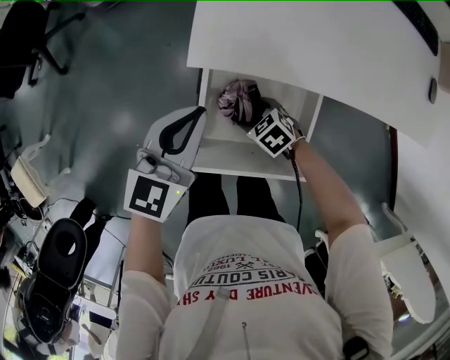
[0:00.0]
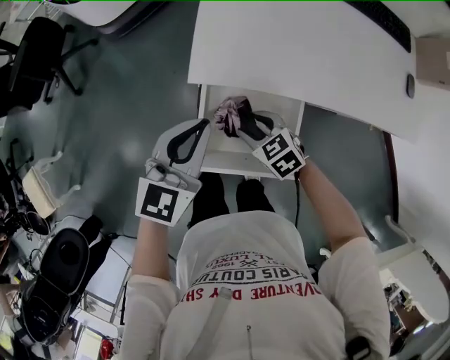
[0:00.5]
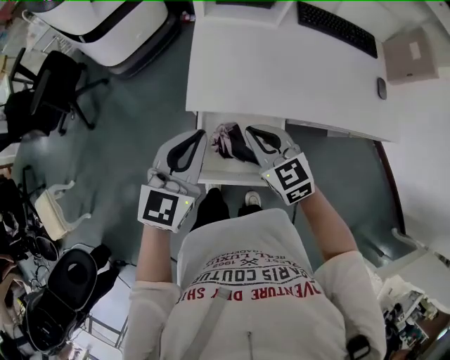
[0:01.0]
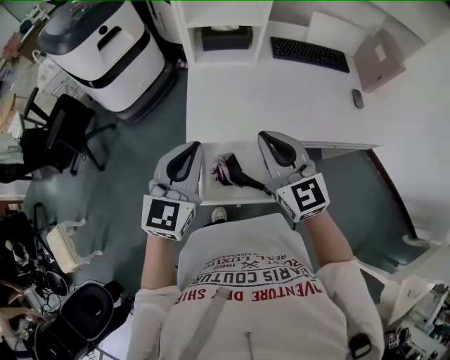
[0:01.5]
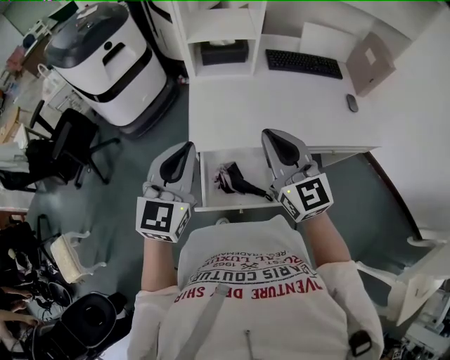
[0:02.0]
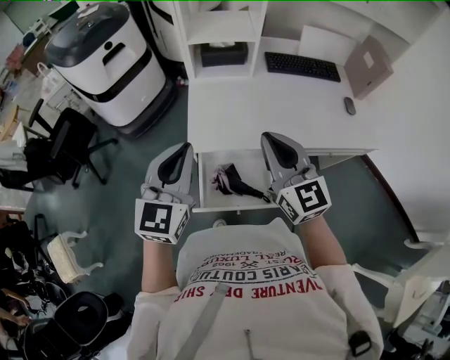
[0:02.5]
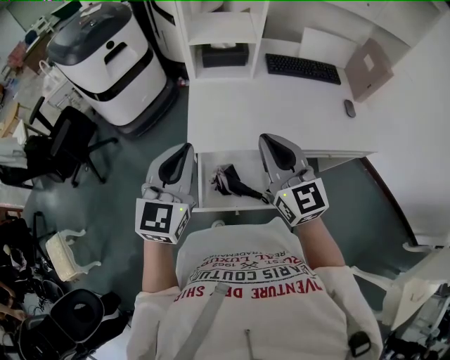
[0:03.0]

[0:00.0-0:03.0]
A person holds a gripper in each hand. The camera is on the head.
0:00.0 to 0:01.5: The left gripper shifts about 25 cm upward; the right gripper is displaced upward by some 50 cm, angles its fingers upward, by roughly 60 degrees, and closes.
0:01.5 to 0:03.0: The left gripper moves some 5 cm.

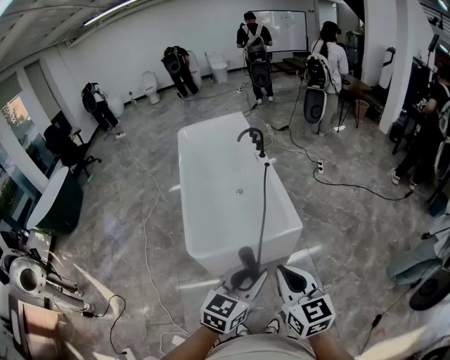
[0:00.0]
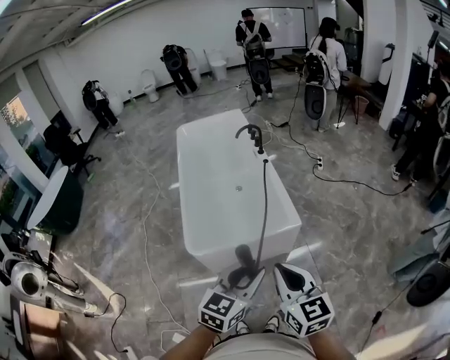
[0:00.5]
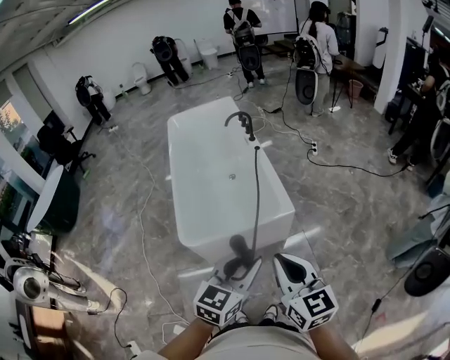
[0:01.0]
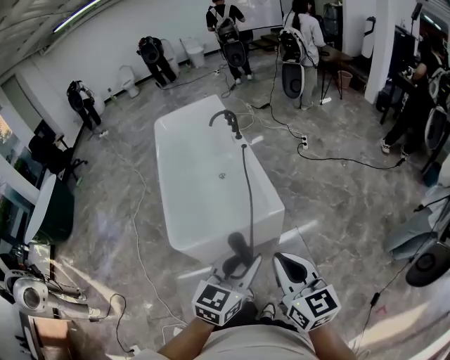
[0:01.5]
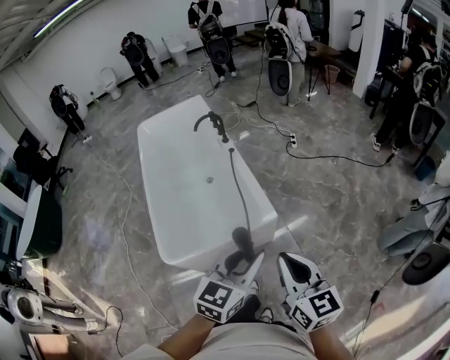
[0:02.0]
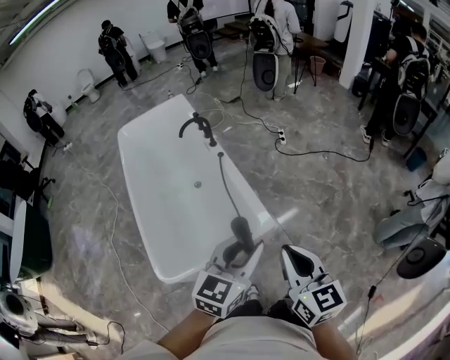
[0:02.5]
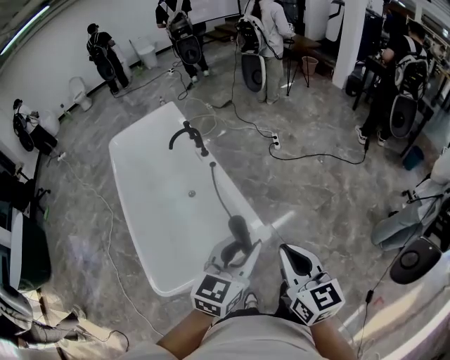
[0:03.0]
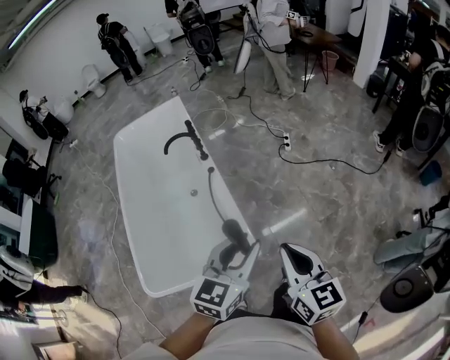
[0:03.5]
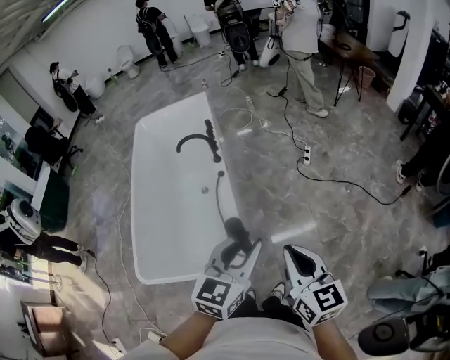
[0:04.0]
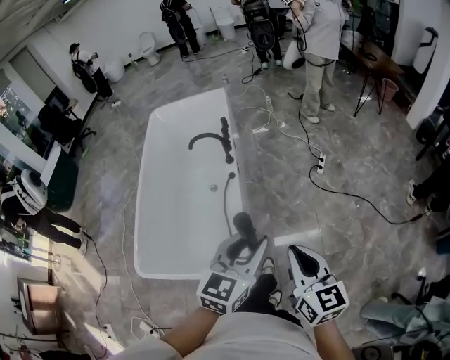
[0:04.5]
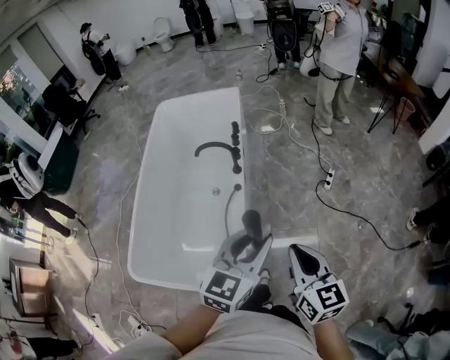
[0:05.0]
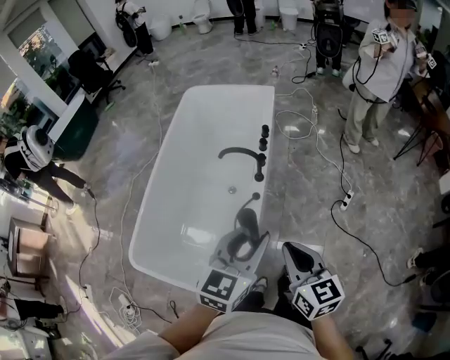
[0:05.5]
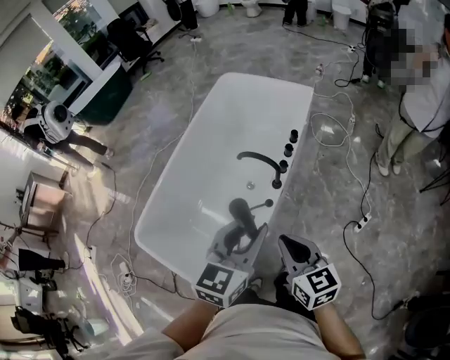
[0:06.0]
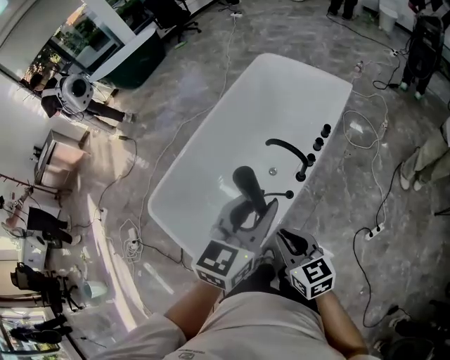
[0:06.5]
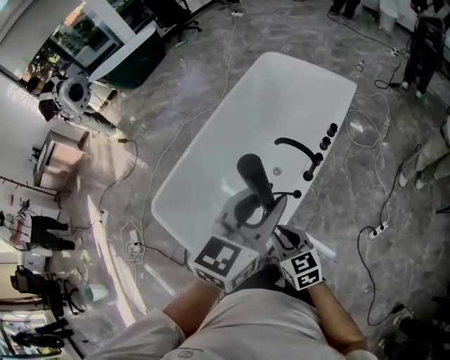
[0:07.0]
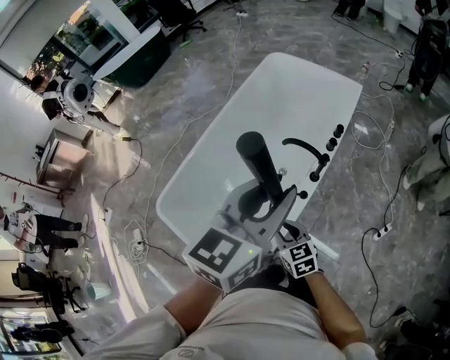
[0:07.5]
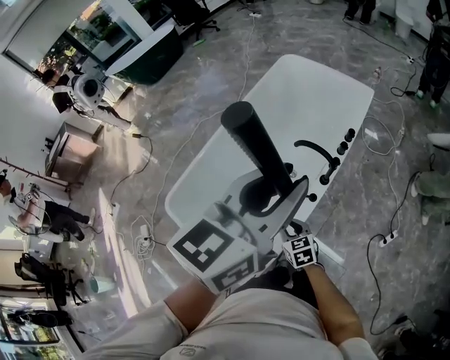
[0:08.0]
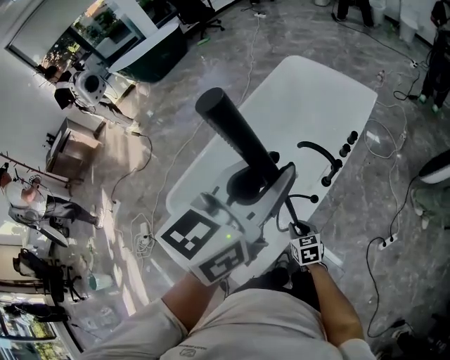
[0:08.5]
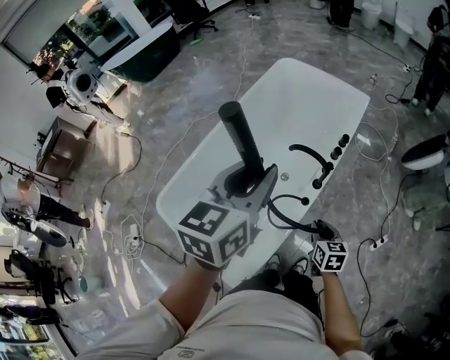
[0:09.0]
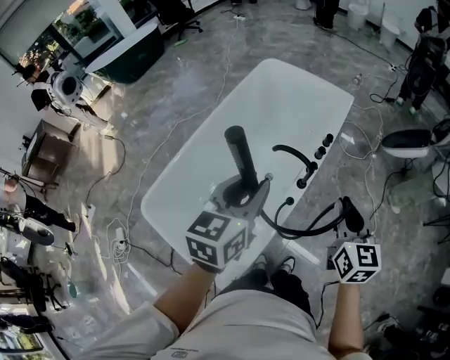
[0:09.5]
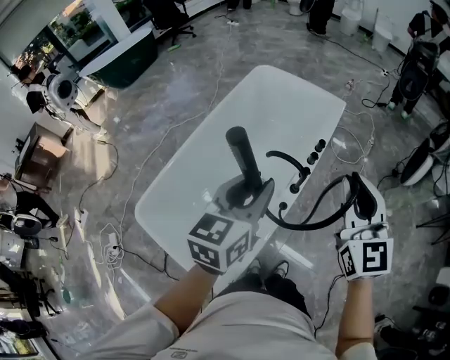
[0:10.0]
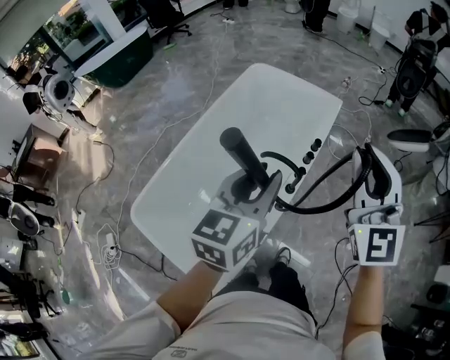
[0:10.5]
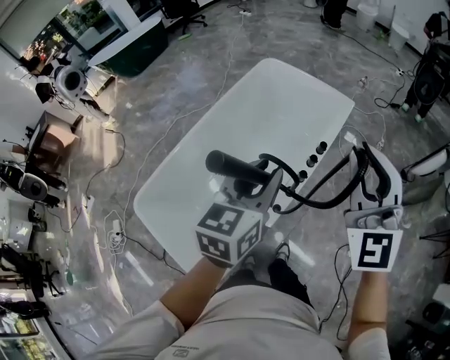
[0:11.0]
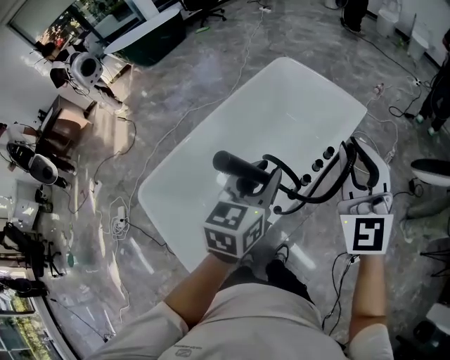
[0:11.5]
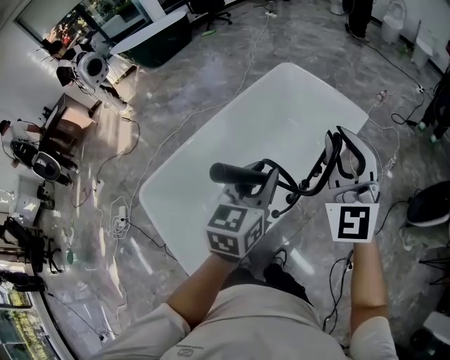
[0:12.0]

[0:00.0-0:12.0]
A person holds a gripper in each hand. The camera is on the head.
0:00.0 to 0:02.0: The left gripper moves forward and to the right, approximately 15 cm, while the right gripper is displaced to the right and forward by some 15 cm.
0:02.0 to 0:04.0: The grippers both shift forward by some 35 cm.
0:04.0 to 0:06.0: The left gripper ends up about 35 cm from where it was, and turns by some 40 degrees. The right gripper shifts by roughly 40 cm, and changes its angle by approximately 50 degrees.
0:06.0 to 0:08.0: The right gripper shifts some 30 cm downward and to the left, and turns by some 20 degrees. Meanwhile the left gripper travels upward, to the left and forward by some 15 cm.
0:08.0 to 0:10.0: The left gripper heads downward, covering about 10 cm. Meanwhile the right gripper travels upward and to the right by about 40 cm, and points its fingers some 40 degrees further upward.
0:10.0 to 0:12.0: The left gripper goes some 15 cm forward and to the right. Meanwhile the right gripper goes about 15 cm forward, and swivels approximately 30 degrees.

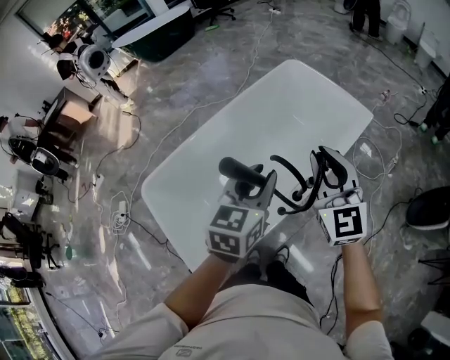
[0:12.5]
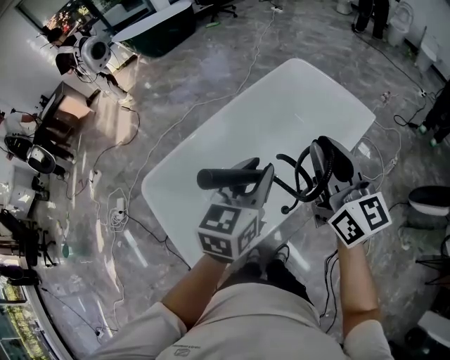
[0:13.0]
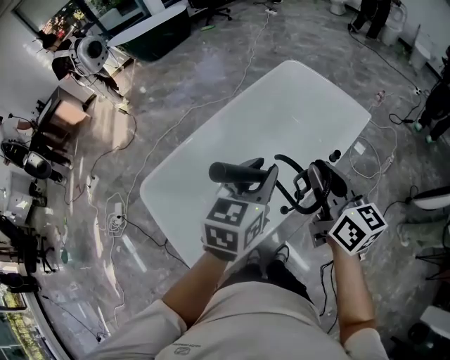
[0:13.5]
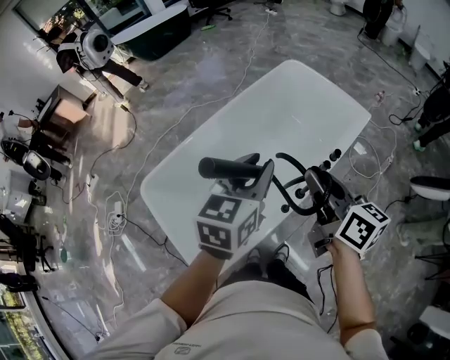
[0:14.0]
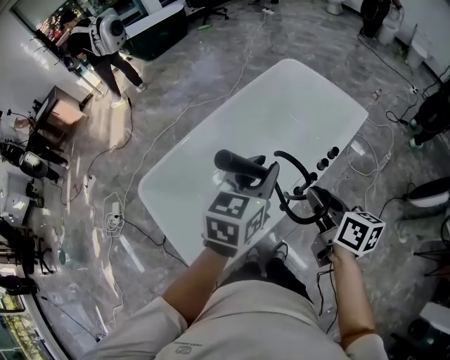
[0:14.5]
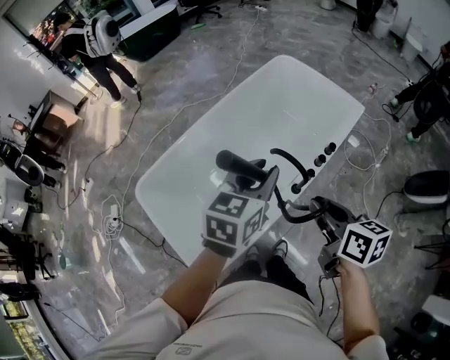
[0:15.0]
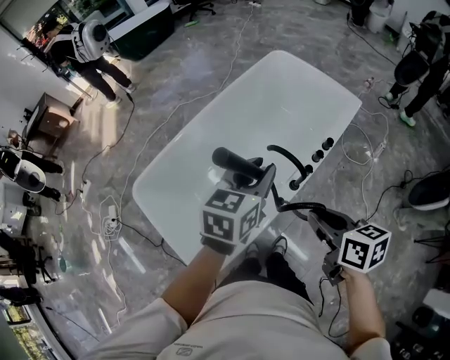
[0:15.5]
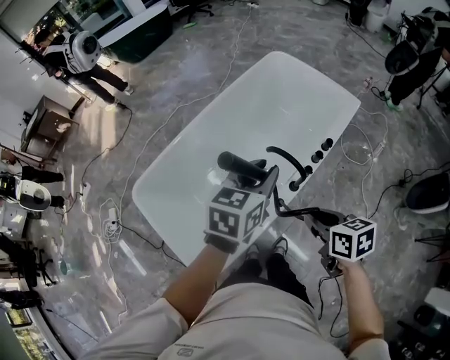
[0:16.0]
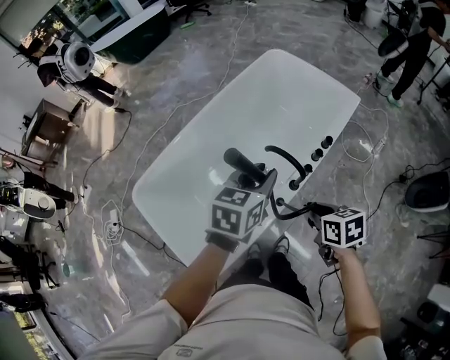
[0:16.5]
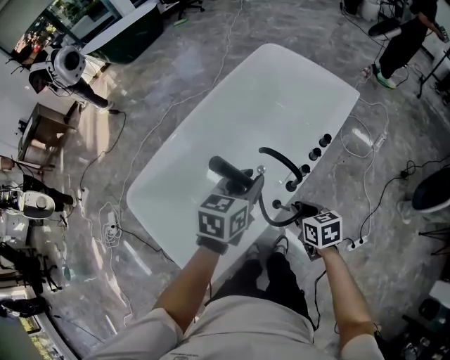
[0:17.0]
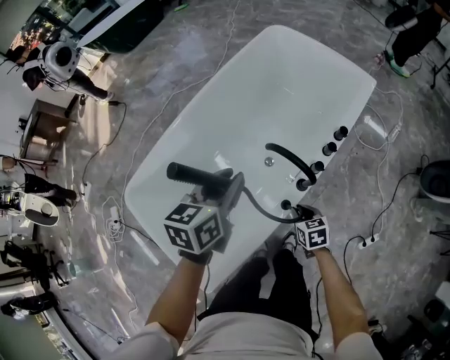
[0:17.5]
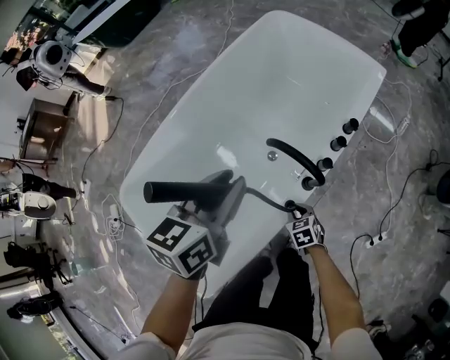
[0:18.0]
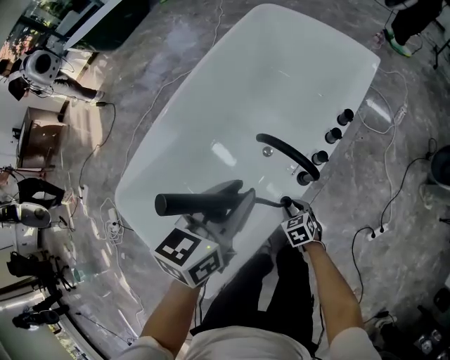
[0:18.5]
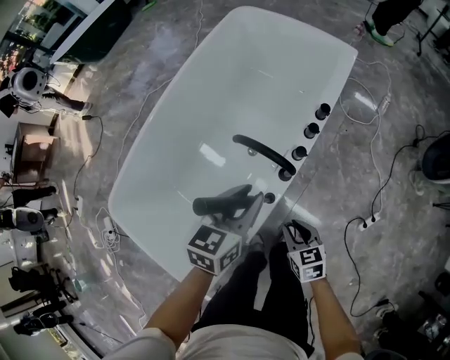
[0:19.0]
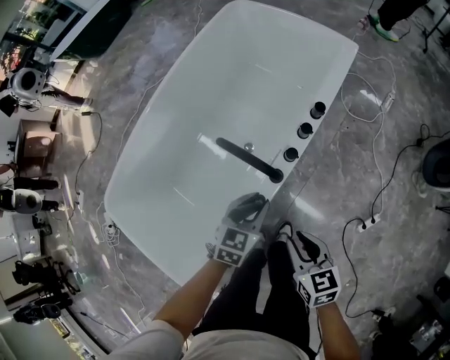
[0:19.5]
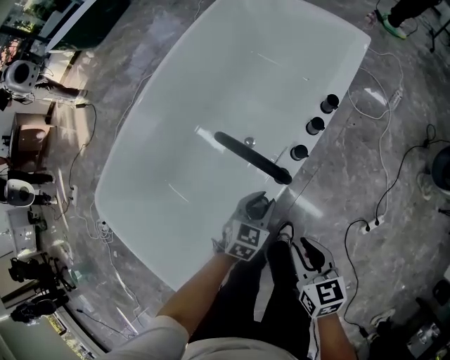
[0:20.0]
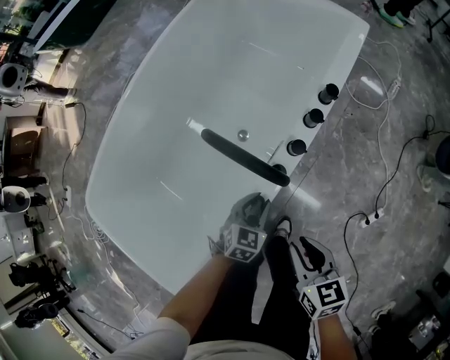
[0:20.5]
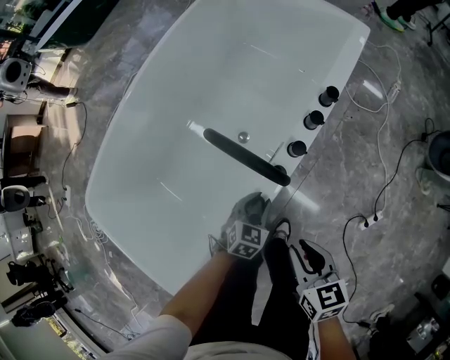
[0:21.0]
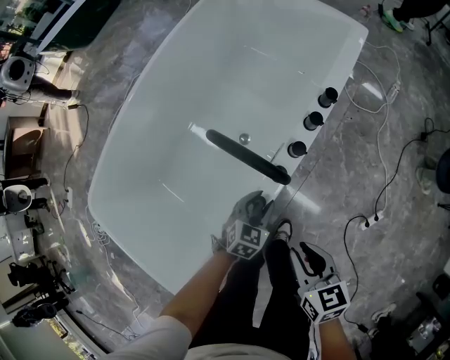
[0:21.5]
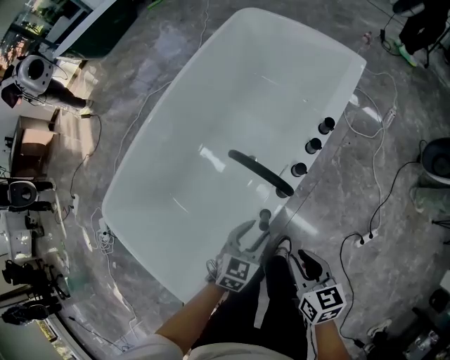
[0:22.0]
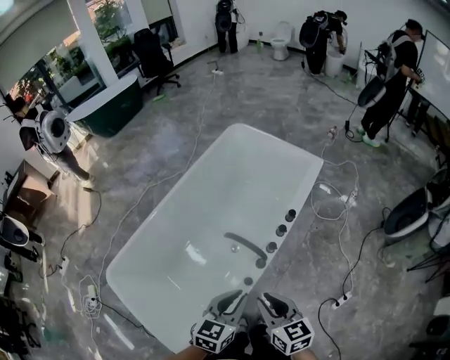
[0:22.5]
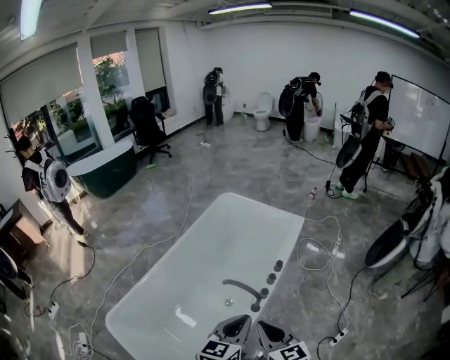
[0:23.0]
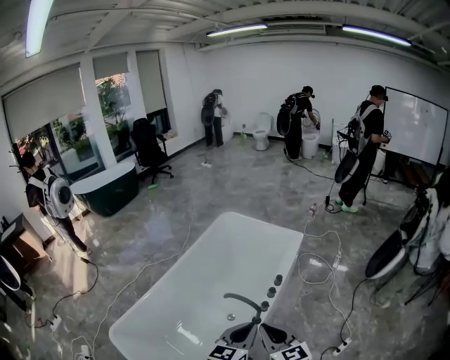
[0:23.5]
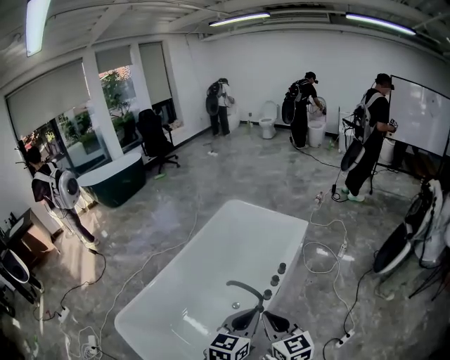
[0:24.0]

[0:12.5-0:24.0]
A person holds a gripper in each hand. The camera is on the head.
0:12.5 to 0:14.5: The right gripper is displaced downward and backward by about 10 cm, and rotates around the line of its fingers by roughly 60 degrees, clockwise from behind.
0:14.5 to 0:16.5: The right gripper moves downward, about 10 cm, and changes its angle by approximately 30 degrees. Meanwhile the left gripper goes approximately 10 cm downward.
0:16.5 to 0:18.5: The right gripper heads downward, covering roughly 35 cm, and swivels roughly 20 degrees; the left gripper goes approximately 10 cm downward.
0:18.5 to 0:20.0: The right gripper is displaced upward and to the right by approximately 20 cm, and swivels some 30 degrees. Meanwhile the left gripper moves downward and to the right, approximately 30 cm, and turns by roughly 30 degrees.
0:20.0 to 0:22.0: The left gripper heads upward, covering about 5 cm.
0:22.0 to 0:24.0: Both grippers travel together upward, approximately 35 cm. The right gripper changes its angle by some 30 degrees, and closes its fingers. Meanwhile the left gripper changes its angle by roughly 20 degrees, and closes.
